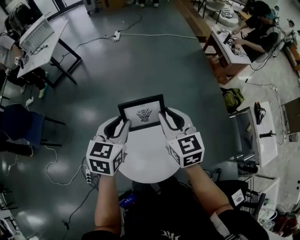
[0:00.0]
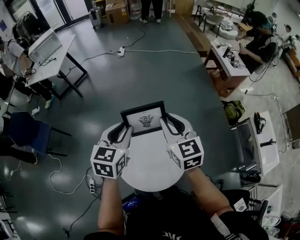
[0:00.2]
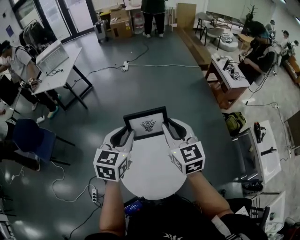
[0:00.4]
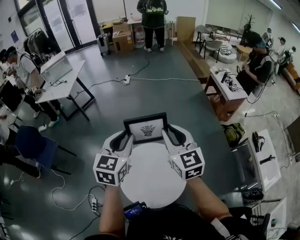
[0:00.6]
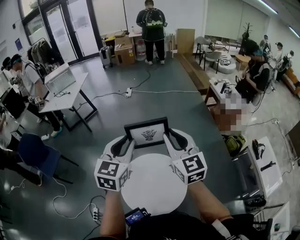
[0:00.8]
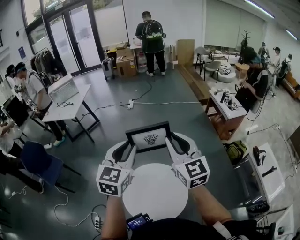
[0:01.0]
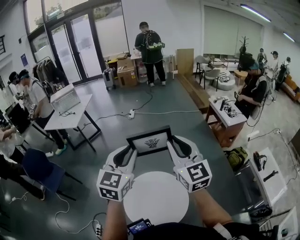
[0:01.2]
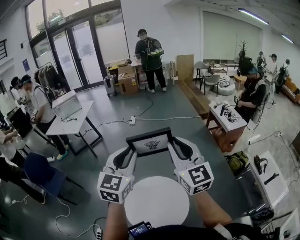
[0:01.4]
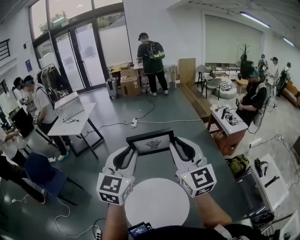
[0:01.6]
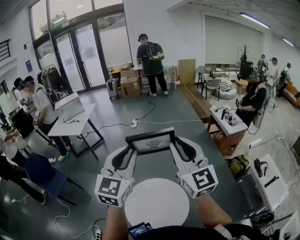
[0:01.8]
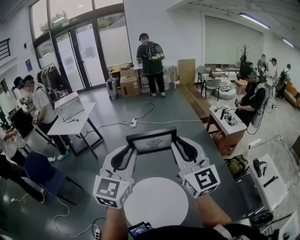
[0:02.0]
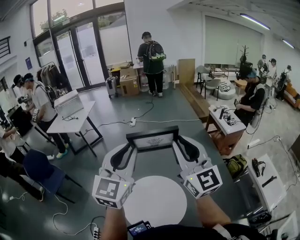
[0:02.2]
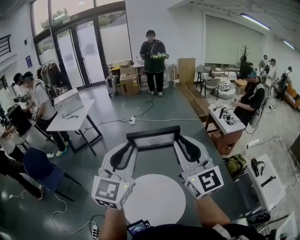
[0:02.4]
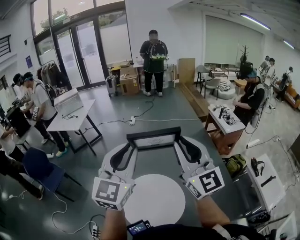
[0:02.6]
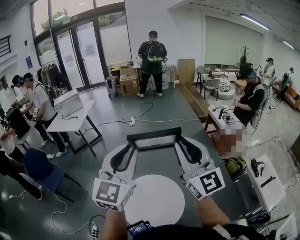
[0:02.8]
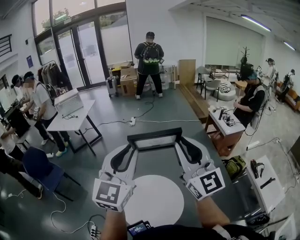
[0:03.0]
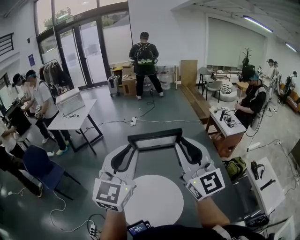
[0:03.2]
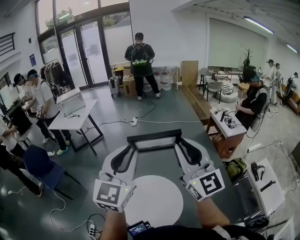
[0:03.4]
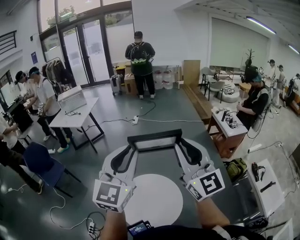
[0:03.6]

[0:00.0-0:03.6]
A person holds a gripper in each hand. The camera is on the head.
0:00.0 to 0:01.8: Both grippers travel together upward, roughly 35 cm. The left gripper angles its fingers upward, by roughly 30 degrees. The right gripper points its fingers about 30 degrees further upward.
0:01.8 to 0:03.6: The right gripper ends up some 5 cm from where it was; the left gripper is displaced backward by roughly 5 cm.

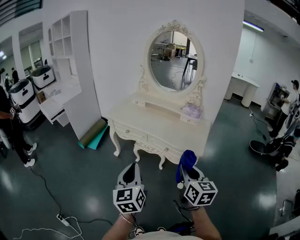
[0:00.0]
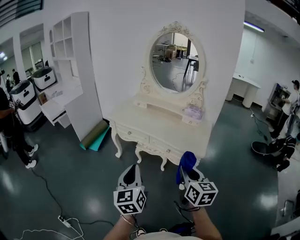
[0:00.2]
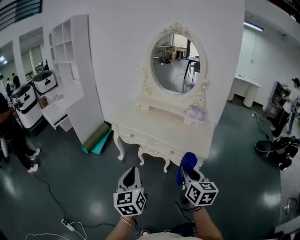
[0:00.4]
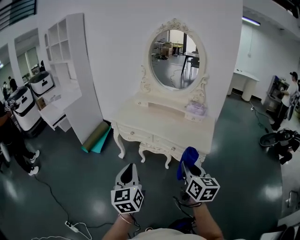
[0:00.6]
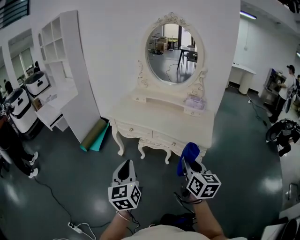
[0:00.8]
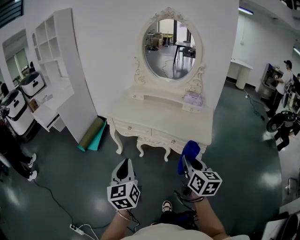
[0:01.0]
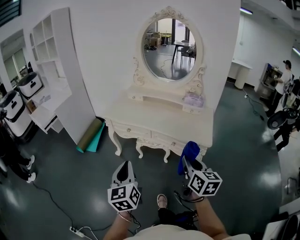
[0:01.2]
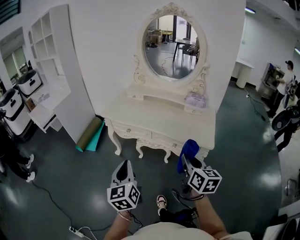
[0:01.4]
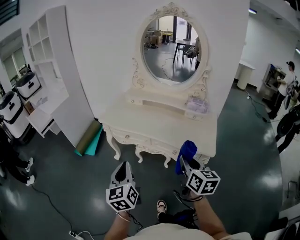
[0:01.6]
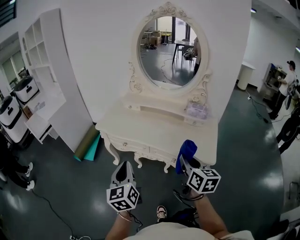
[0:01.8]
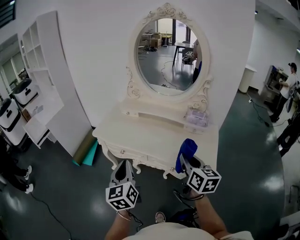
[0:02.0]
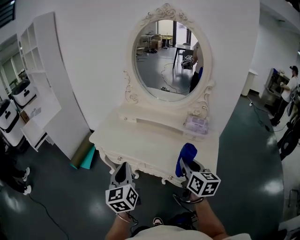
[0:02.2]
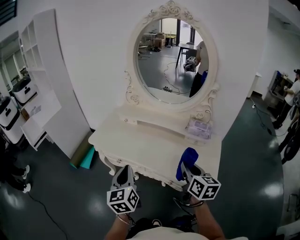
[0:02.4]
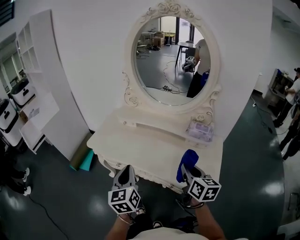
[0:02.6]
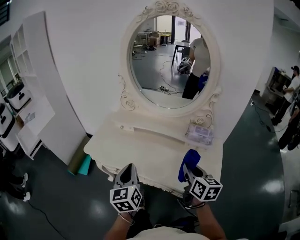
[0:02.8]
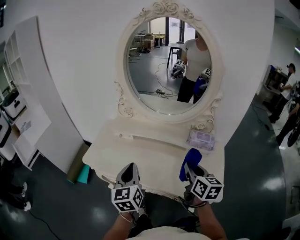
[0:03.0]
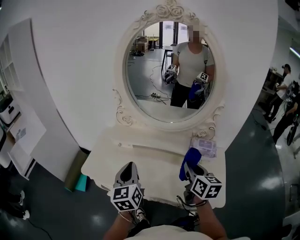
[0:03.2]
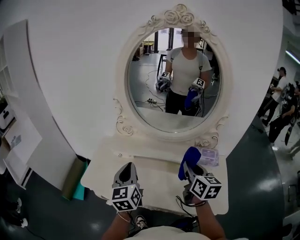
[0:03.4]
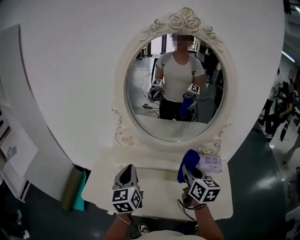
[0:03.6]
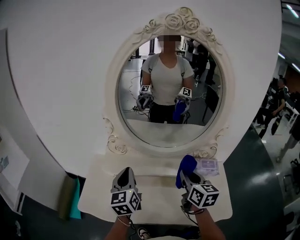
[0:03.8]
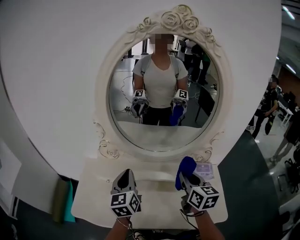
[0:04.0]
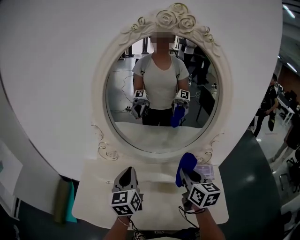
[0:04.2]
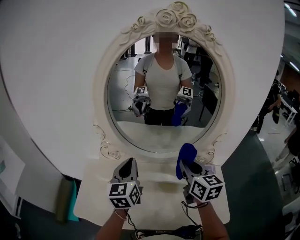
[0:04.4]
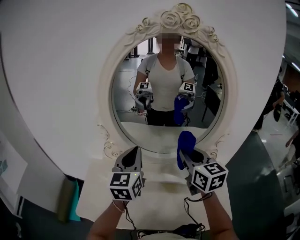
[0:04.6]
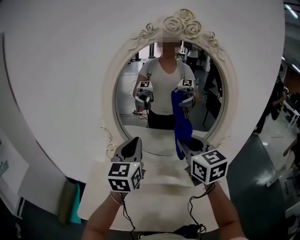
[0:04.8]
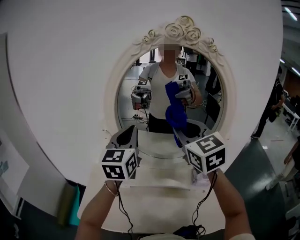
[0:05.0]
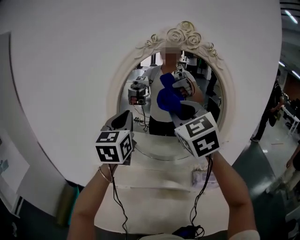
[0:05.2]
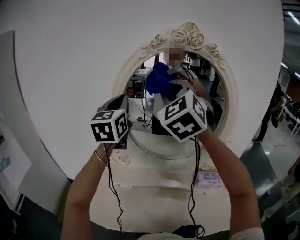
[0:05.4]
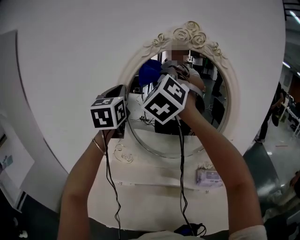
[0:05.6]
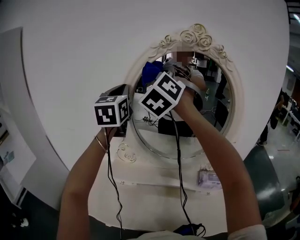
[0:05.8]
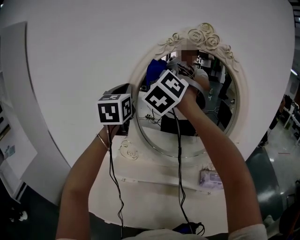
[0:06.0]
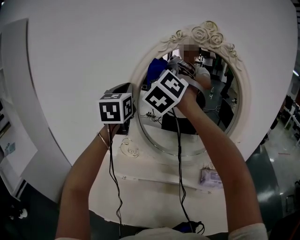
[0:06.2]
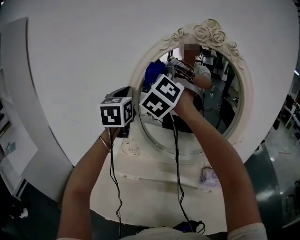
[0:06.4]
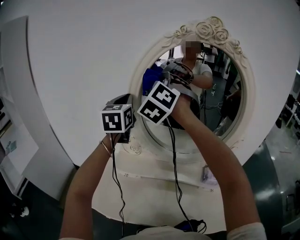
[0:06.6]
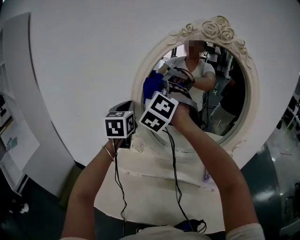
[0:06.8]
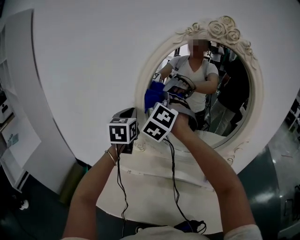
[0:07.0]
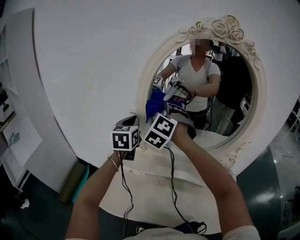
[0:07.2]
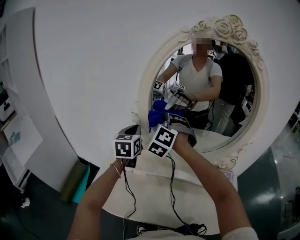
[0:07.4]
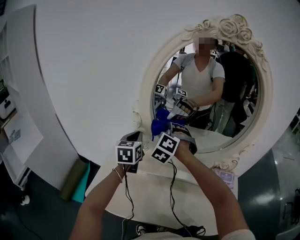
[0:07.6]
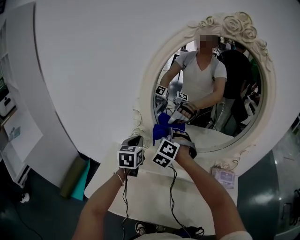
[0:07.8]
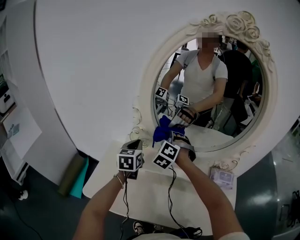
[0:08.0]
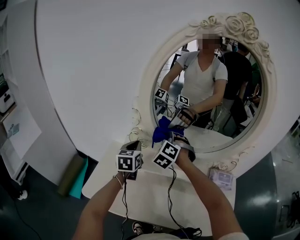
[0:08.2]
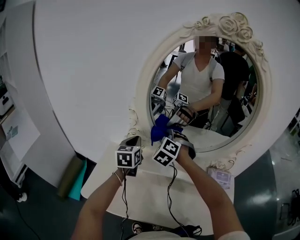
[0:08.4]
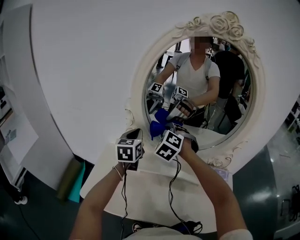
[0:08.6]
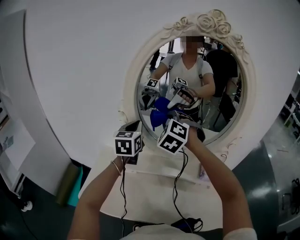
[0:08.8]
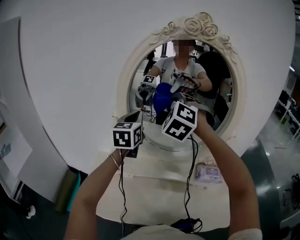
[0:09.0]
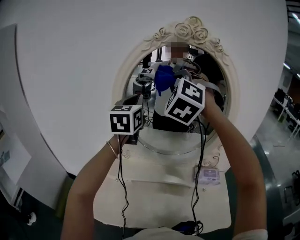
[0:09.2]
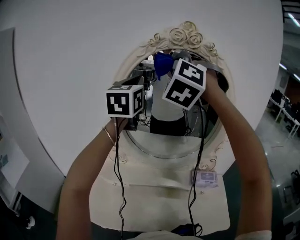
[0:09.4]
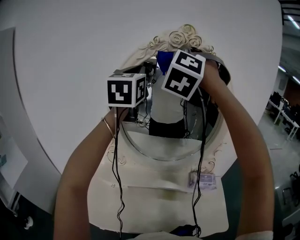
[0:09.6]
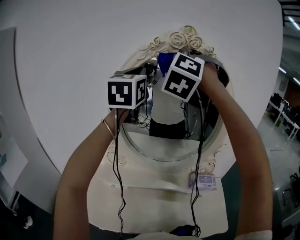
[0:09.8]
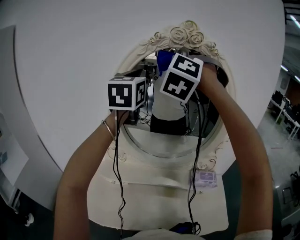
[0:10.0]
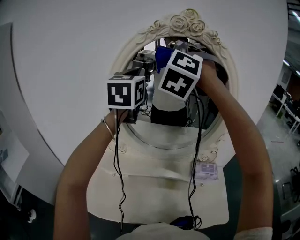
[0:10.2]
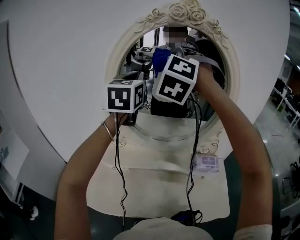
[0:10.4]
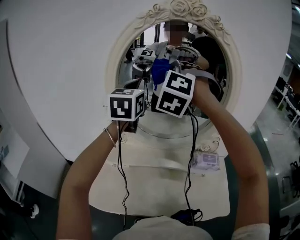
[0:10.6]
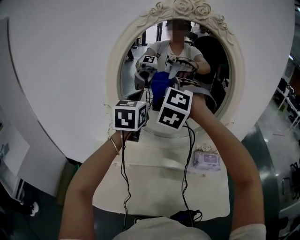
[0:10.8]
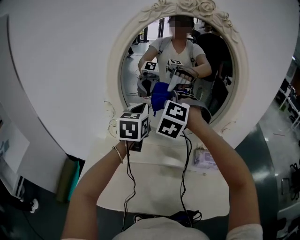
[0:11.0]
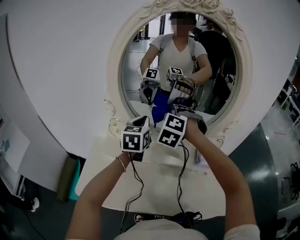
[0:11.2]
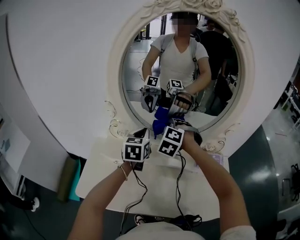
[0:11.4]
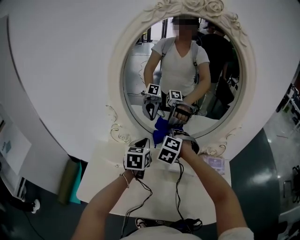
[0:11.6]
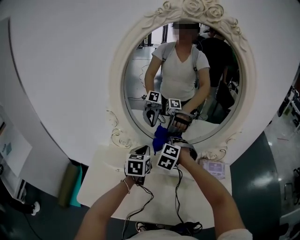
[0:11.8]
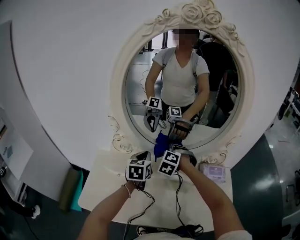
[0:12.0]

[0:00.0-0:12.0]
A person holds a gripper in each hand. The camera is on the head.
0:00.0 to 0:01.6: The left gripper travels forward and to the left by approximately 15 cm, while the right gripper moves forward, approximately 15 cm.
0:01.6 to 0:03.0: The grippers both shift forward by approximately 30 cm.
0:03.0 to 0:04.4: The left gripper travels forward by roughly 25 cm; the right gripper is displaced forward and upward by approximately 25 cm.
0:04.4 to 0:06.0: The two grippers go approximately 35 cm upward, to the left and forward. The right gripper rotates around the line of its fingers by roughly 70 degrees, counterclockwise from behind.
0:06.0 to 0:07.6: Both grippers move downward, approximately 30 cm. The left gripper changes its angle by some 20 degrees. Meanwhile the right gripper changes its angle by some 30 degrees.
0:07.6 to 0:09.0: Both grippers travel together upward and to the right, about 20 cm.
0:09.0 to 0:10.4: Both grippers travel together upward, some 15 cm.
0:10.4 to 0:12.0: The grippers both shift downward by roughly 40 cm. The right gripper tilts its fingers about 40 degrees downward. The left gripper changes its angle by some 30 degrees.

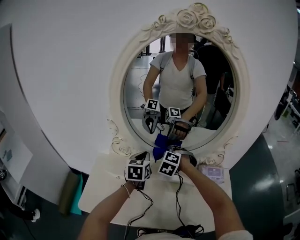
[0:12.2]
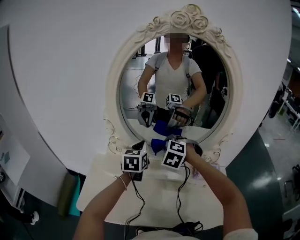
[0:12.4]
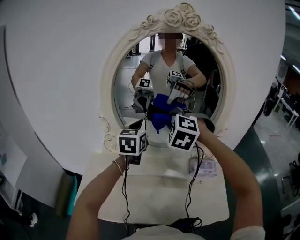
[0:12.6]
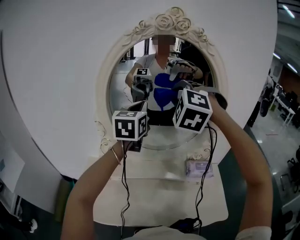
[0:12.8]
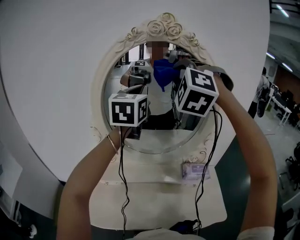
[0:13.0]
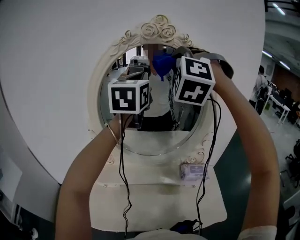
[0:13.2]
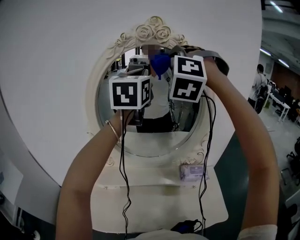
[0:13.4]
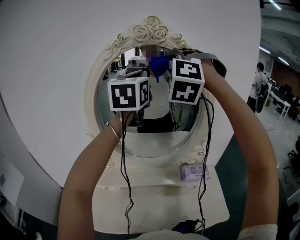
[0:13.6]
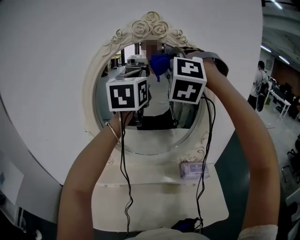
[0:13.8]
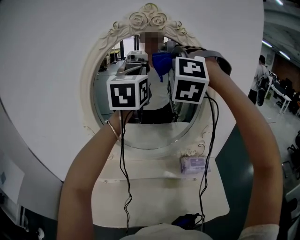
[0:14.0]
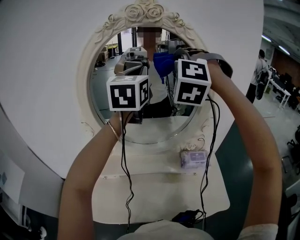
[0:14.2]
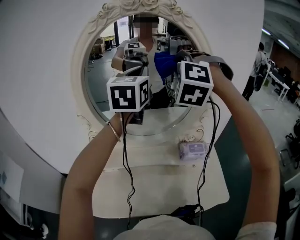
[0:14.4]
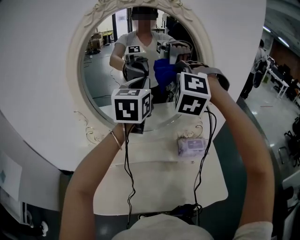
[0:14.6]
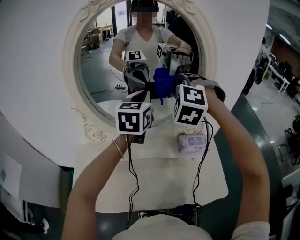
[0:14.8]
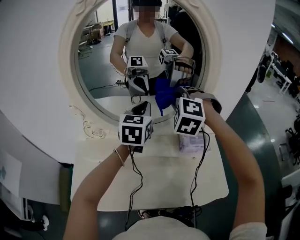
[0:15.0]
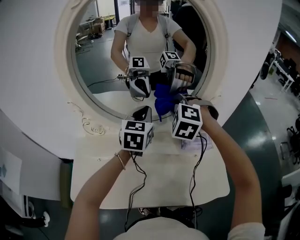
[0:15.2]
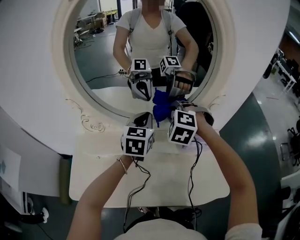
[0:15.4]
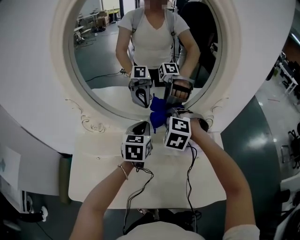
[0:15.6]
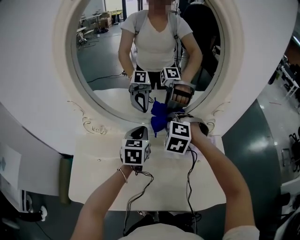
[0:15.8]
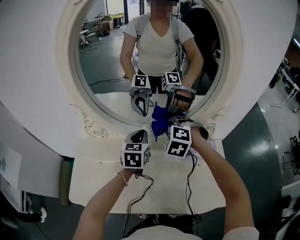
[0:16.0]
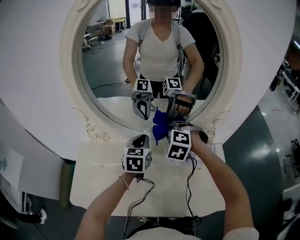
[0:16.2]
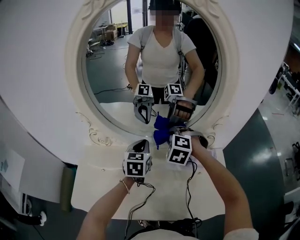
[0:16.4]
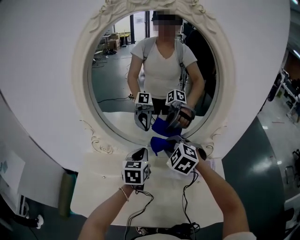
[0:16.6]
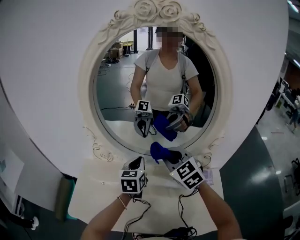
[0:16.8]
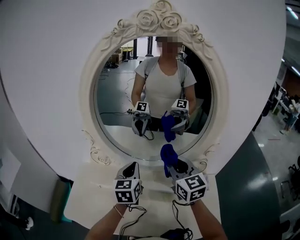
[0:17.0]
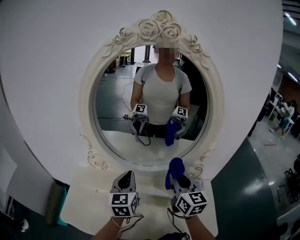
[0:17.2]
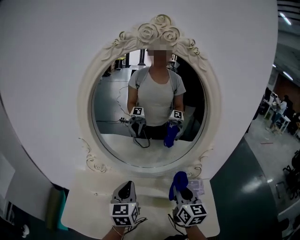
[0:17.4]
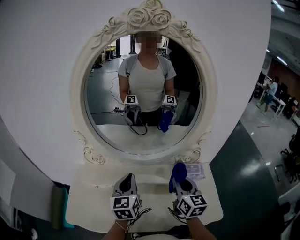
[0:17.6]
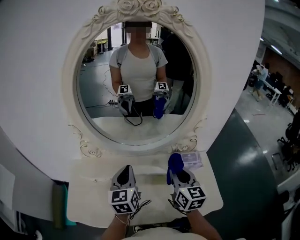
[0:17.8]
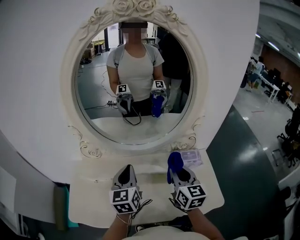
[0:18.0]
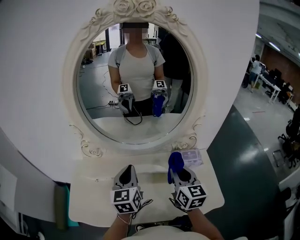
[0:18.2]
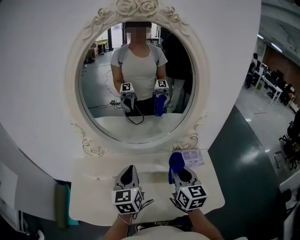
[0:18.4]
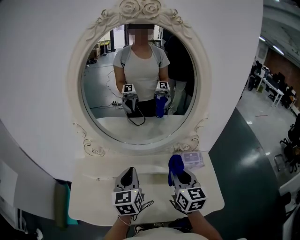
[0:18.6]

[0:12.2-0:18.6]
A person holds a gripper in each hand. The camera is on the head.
0:12.2 to 0:13.8: Both grippers move upward, approximately 40 cm. The left gripper tilts its fingers roughly 30 degrees upward, while the right gripper tilts its fingers some 40 degrees upward.
0:13.8 to 0:15.4: Both grippers move downward, roughly 40 cm. The left gripper swivels roughly 30 degrees. The right gripper tips its fingers downward by roughly 40 degrees.
0:15.4 to 0:17.0: The left gripper heads to the left, covering approximately 10 cm; the right gripper moves upward and backward, approximately 10 cm, and tips its fingers upward by some 40 degrees.
0:17.0 to 0:18.6: The left gripper goes some 10 cm backward, while the right gripper goes roughly 15 cm backward and downward, and swivels some 20 degrees.

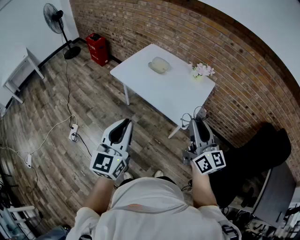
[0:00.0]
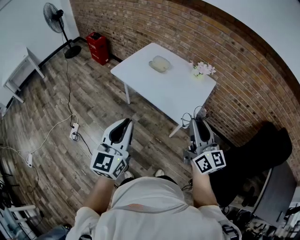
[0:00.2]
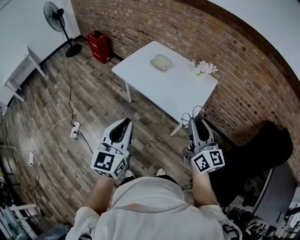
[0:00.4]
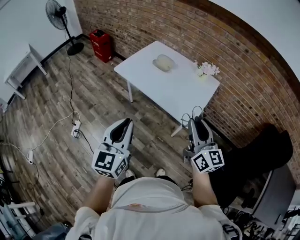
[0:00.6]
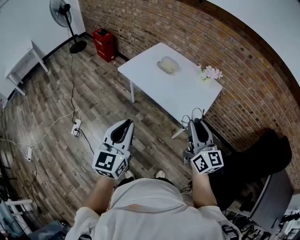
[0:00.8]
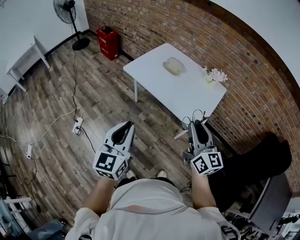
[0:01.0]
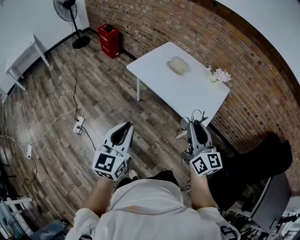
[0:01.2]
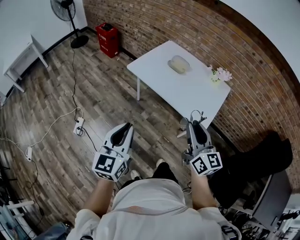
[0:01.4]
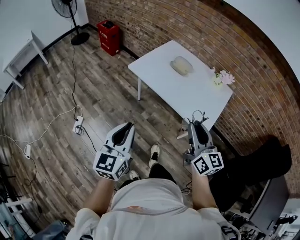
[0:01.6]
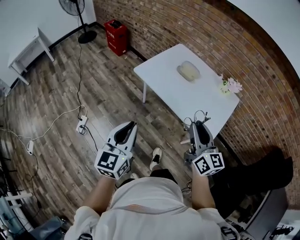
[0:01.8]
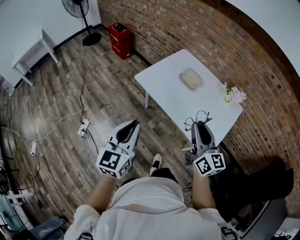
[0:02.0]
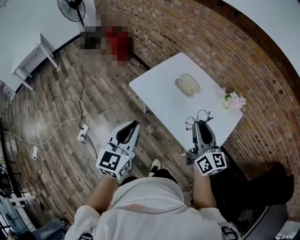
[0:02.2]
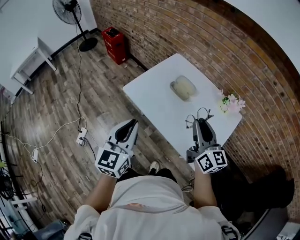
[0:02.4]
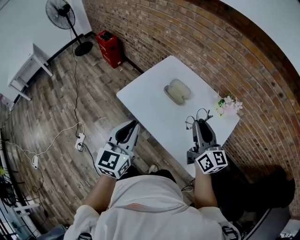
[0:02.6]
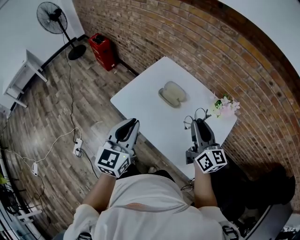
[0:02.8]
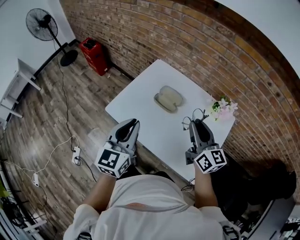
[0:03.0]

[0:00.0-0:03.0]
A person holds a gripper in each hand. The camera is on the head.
0:00.0 to 0:01.6: The right gripper heads to the left, forward and downward, covering some 15 cm, while the left gripper goes about 15 cm to the left, downward and forward.
0:01.6 to 0:03.0: Both grippers travel together forward, some 35 cm.
